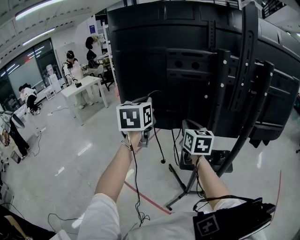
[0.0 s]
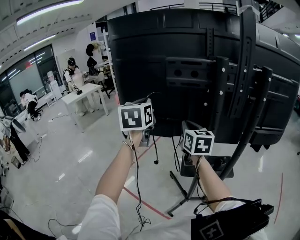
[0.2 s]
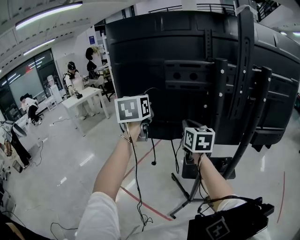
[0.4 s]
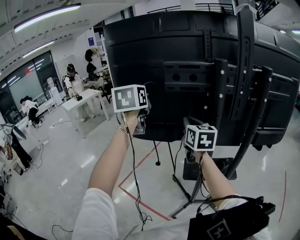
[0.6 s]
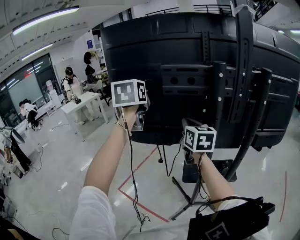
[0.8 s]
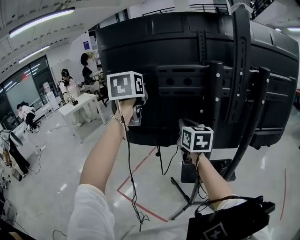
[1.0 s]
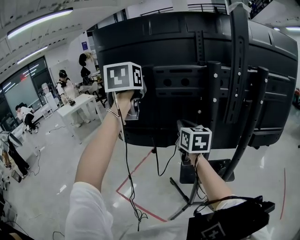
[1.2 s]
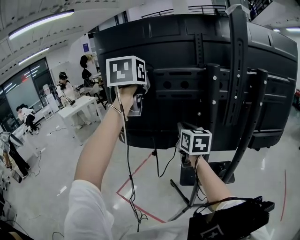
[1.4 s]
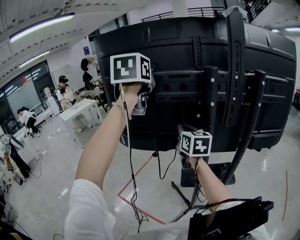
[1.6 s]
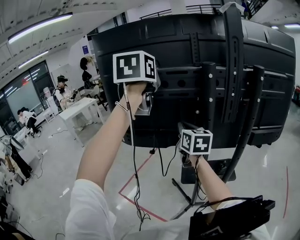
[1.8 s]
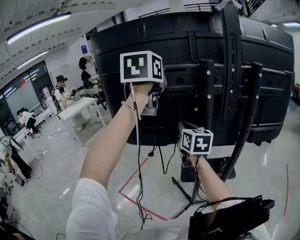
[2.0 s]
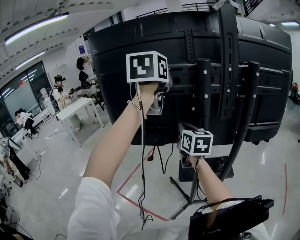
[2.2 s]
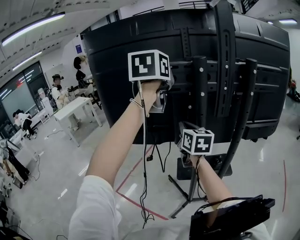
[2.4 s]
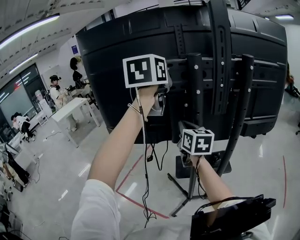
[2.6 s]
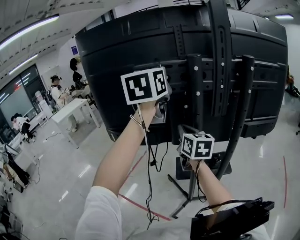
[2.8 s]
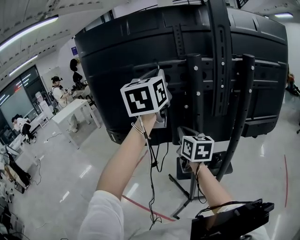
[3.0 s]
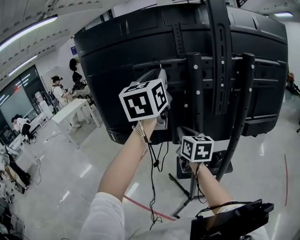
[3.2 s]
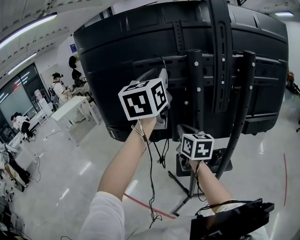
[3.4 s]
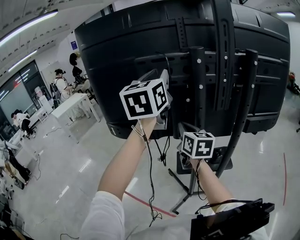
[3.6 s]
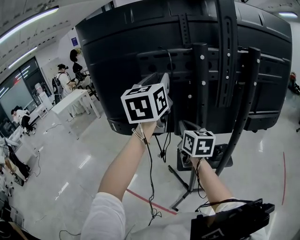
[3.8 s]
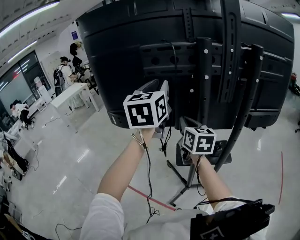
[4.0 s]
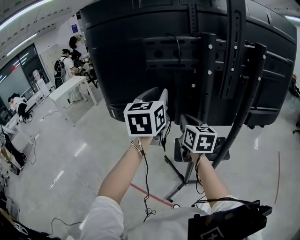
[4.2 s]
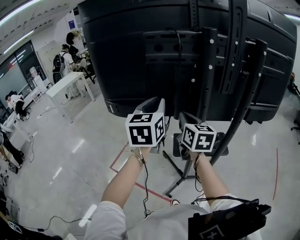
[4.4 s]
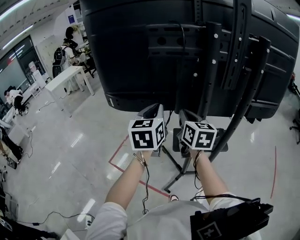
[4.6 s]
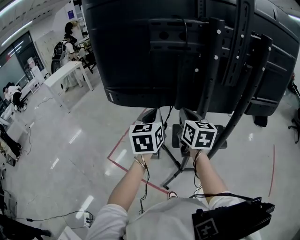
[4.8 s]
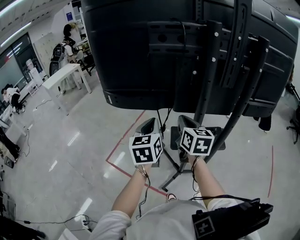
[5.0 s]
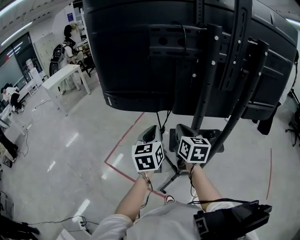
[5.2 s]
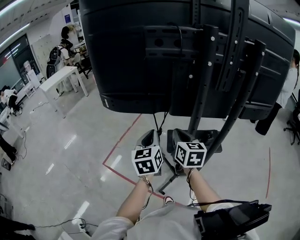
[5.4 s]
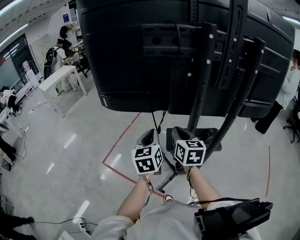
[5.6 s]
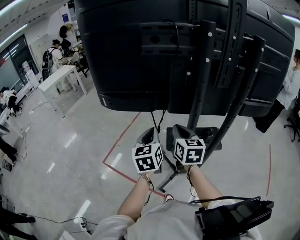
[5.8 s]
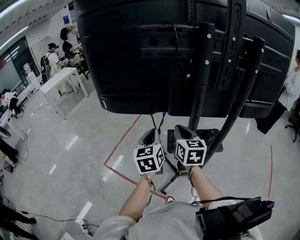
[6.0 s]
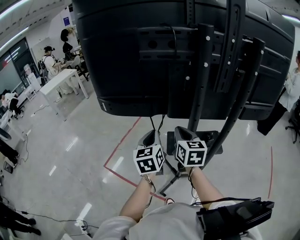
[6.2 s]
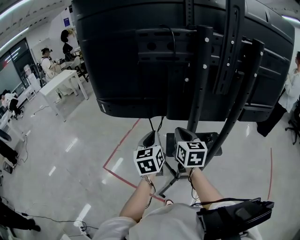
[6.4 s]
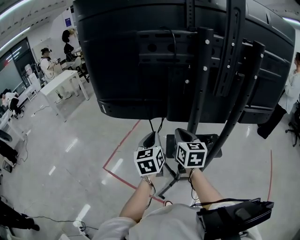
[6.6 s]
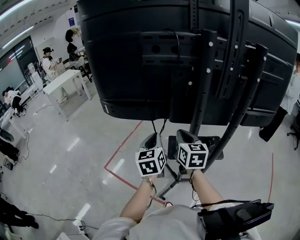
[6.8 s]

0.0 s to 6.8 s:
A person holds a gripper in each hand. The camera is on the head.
0.0 to 1.4 s: The right gripper heads upward, covering approximately 5 cm. Meanwhile the left gripper moves upward, roughly 20 cm.
1.4 to 2.8 s: The right gripper travels to the right by roughly 5 cm, while the left gripper goes some 15 cm to the right.
2.8 to 4.0 s: The left gripper moves downward, roughly 10 cm, and opens up.
4.0 to 5.4 s: The left gripper is displaced downward by roughly 25 cm, and closes up; the right gripper goes some 10 cm downward and backward.
5.4 to 6.8 s: The grippers move only a little.

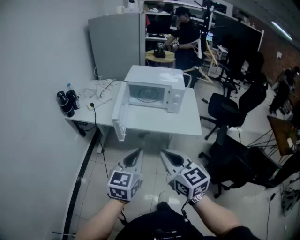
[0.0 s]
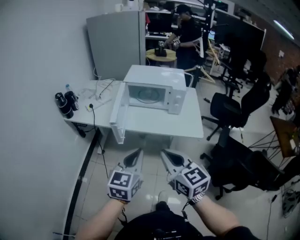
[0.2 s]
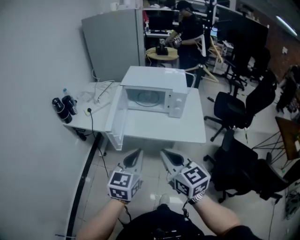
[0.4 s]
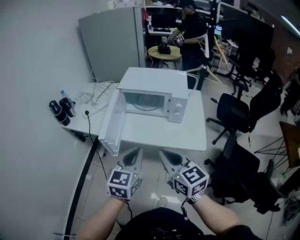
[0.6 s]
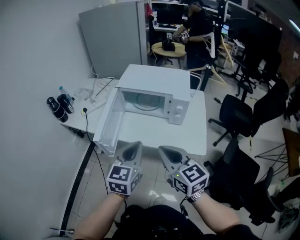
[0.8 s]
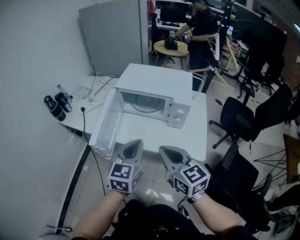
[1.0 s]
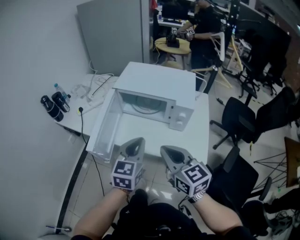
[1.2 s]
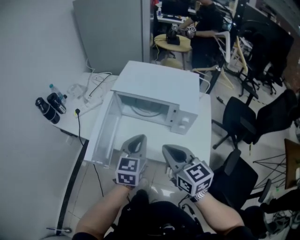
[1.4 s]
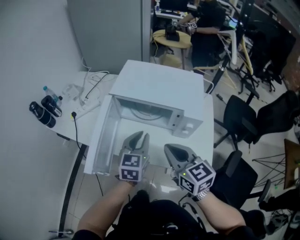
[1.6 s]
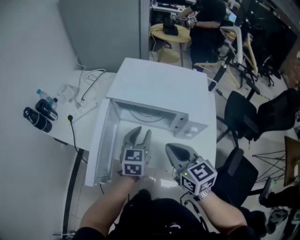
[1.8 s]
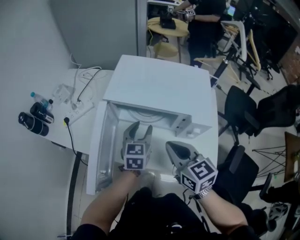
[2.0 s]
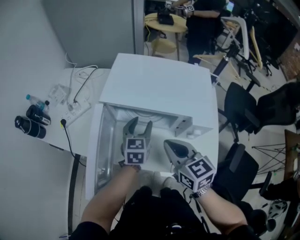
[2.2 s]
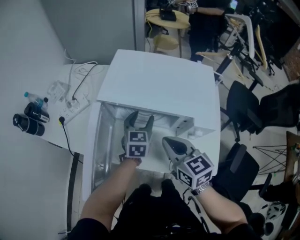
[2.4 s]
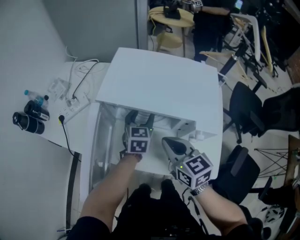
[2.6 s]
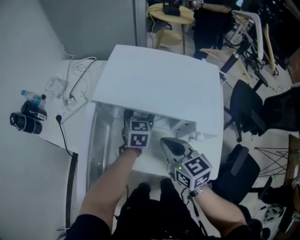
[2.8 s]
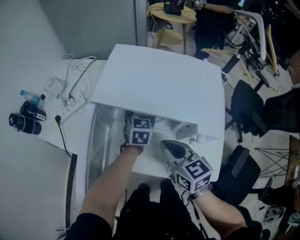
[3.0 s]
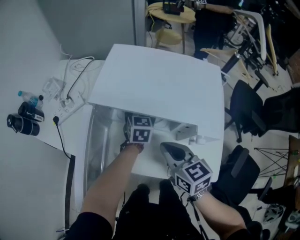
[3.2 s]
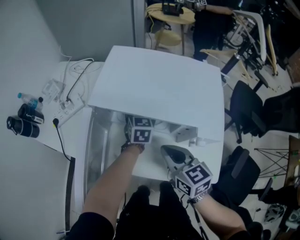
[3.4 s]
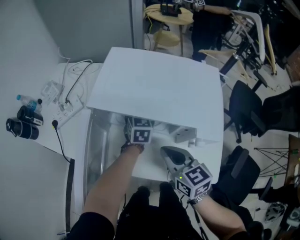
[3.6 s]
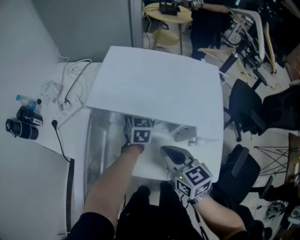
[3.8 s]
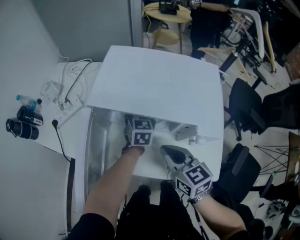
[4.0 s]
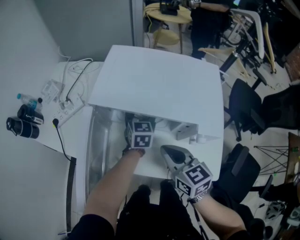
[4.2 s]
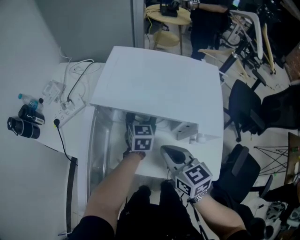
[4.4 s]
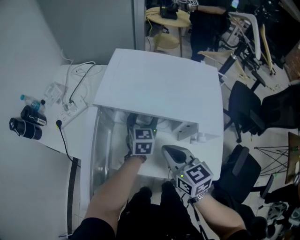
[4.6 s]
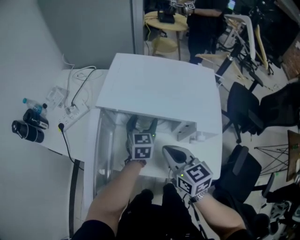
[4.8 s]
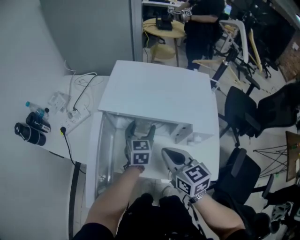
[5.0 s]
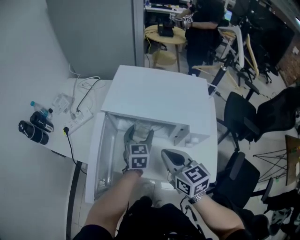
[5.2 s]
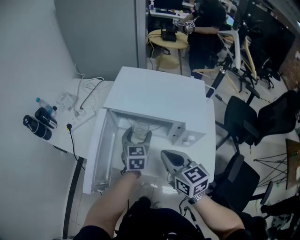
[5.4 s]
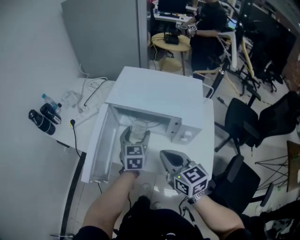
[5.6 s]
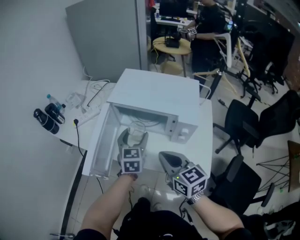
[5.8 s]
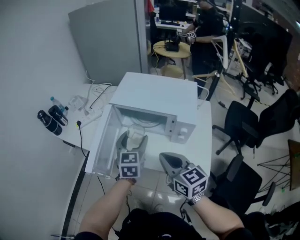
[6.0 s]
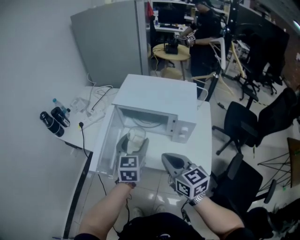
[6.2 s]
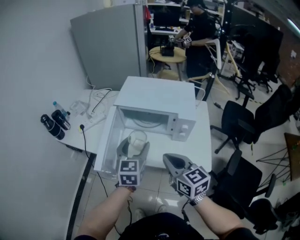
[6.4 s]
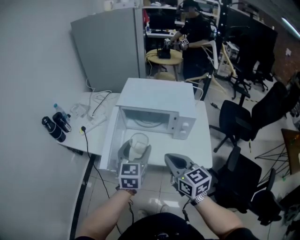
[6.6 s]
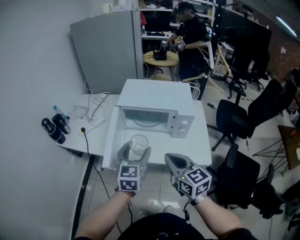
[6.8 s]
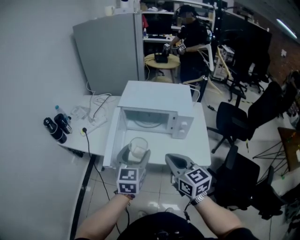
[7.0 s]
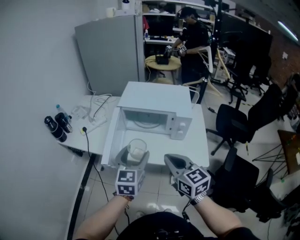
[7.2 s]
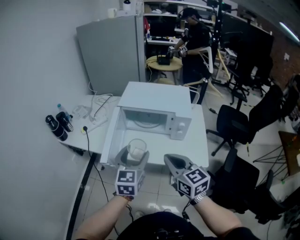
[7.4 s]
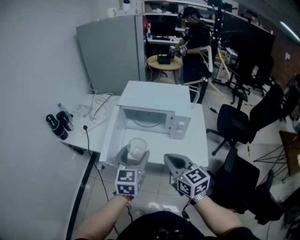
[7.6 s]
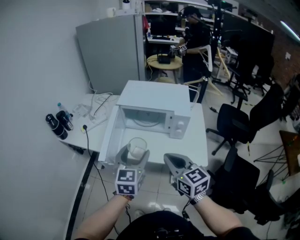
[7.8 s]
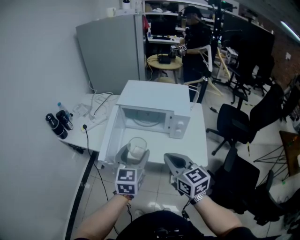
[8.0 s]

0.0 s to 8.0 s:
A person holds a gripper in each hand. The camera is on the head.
0.0 to 1.6 s: The grippers both shift forward by some 35 cm.
1.6 to 3.2 s: The right gripper shifts approximately 15 cm forward and downward, while the left gripper moves forward and downward, some 25 cm, and opens.
3.2 to 4.8 s: The left gripper is displaced backward by approximately 5 cm.
4.8 to 6.4 s: The grippers both shift backward and upward by about 20 cm.
6.4 to 8.0 s: The right gripper goes some 5 cm backward. Meanwhile the left gripper is displaced backward by some 10 cm.

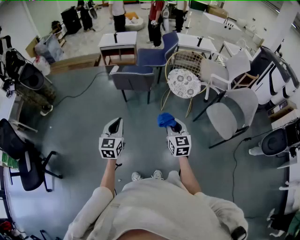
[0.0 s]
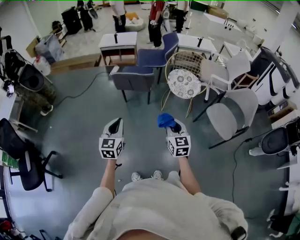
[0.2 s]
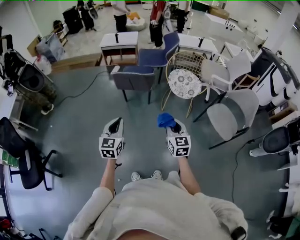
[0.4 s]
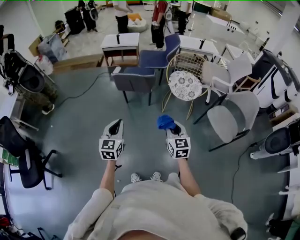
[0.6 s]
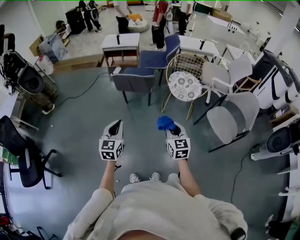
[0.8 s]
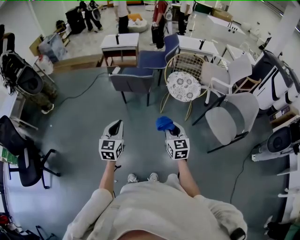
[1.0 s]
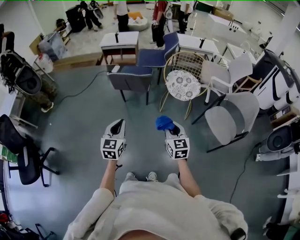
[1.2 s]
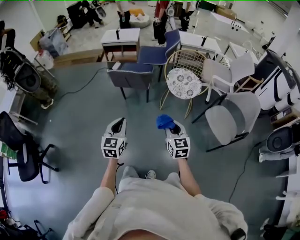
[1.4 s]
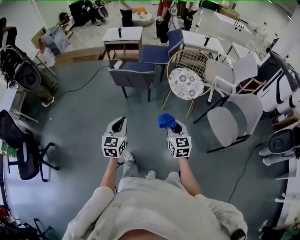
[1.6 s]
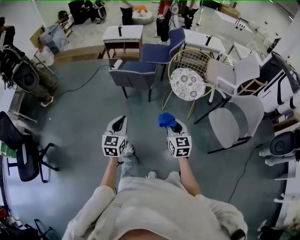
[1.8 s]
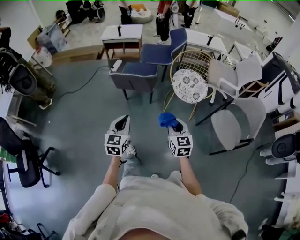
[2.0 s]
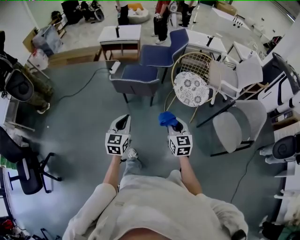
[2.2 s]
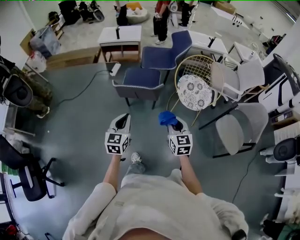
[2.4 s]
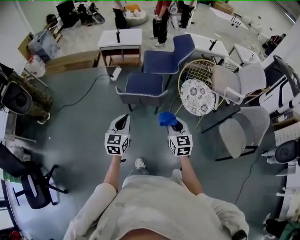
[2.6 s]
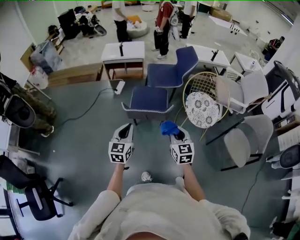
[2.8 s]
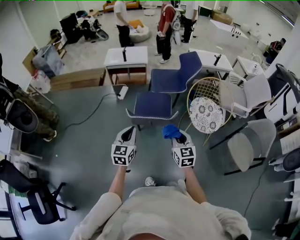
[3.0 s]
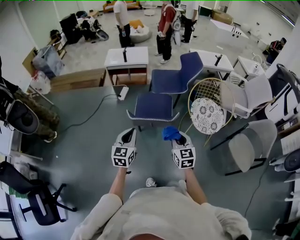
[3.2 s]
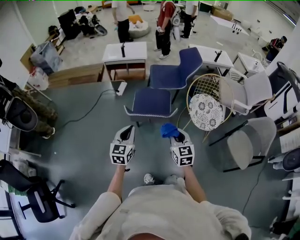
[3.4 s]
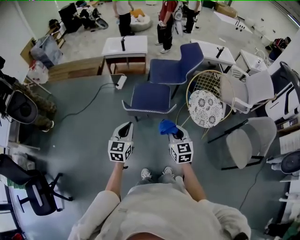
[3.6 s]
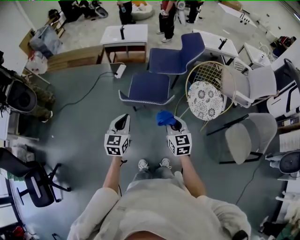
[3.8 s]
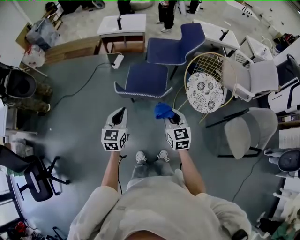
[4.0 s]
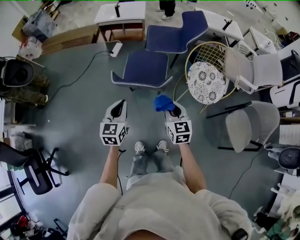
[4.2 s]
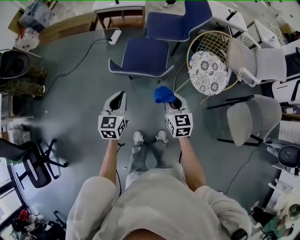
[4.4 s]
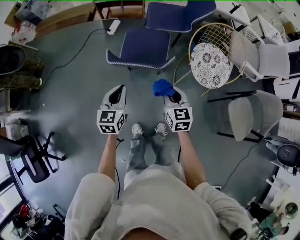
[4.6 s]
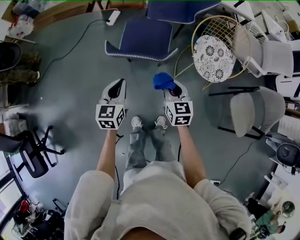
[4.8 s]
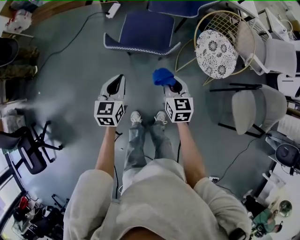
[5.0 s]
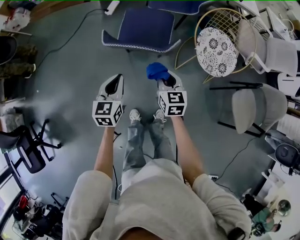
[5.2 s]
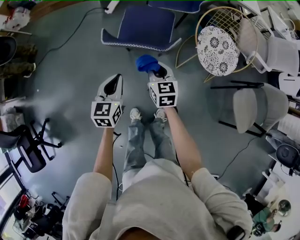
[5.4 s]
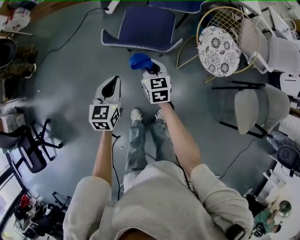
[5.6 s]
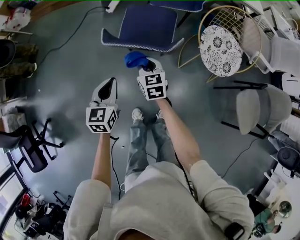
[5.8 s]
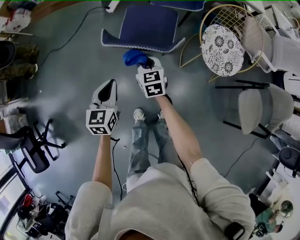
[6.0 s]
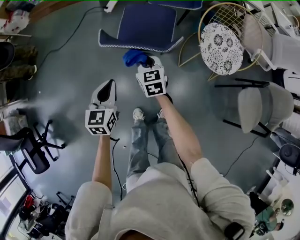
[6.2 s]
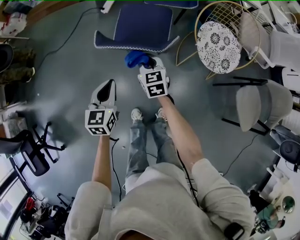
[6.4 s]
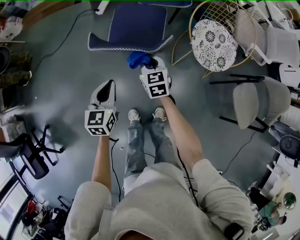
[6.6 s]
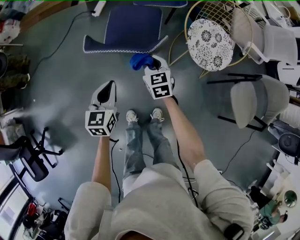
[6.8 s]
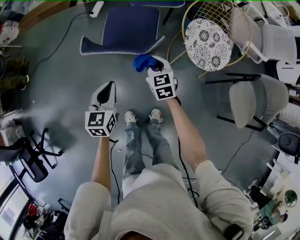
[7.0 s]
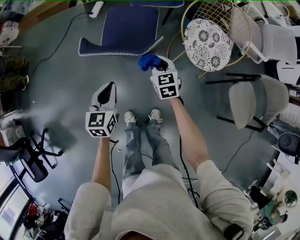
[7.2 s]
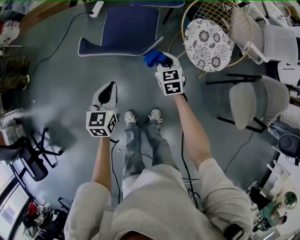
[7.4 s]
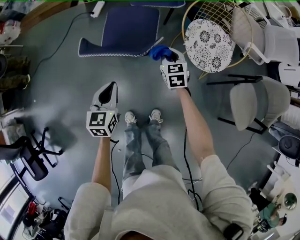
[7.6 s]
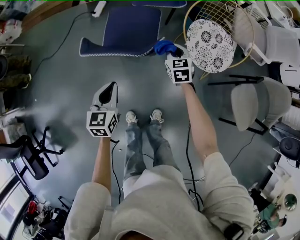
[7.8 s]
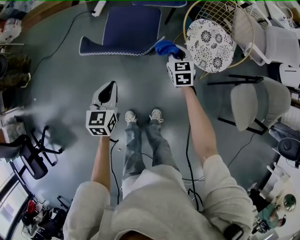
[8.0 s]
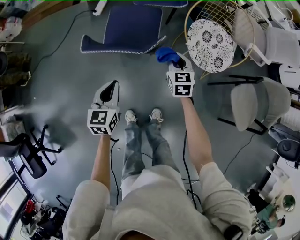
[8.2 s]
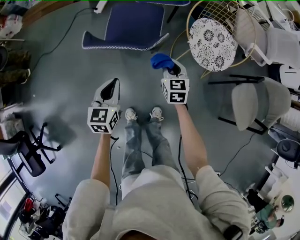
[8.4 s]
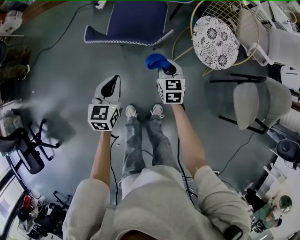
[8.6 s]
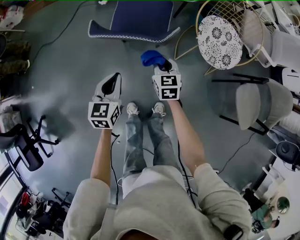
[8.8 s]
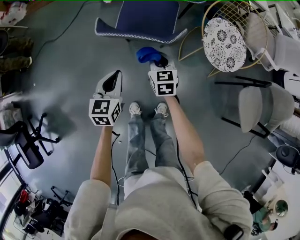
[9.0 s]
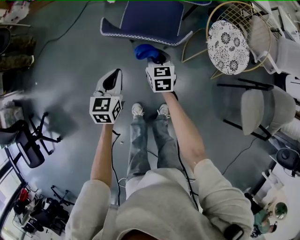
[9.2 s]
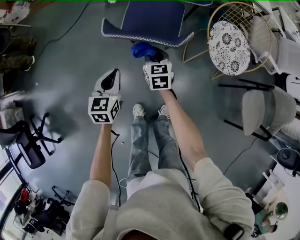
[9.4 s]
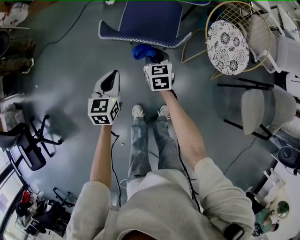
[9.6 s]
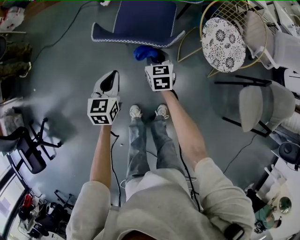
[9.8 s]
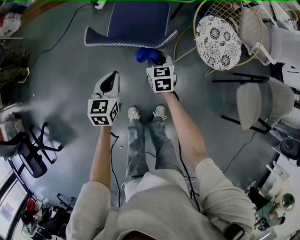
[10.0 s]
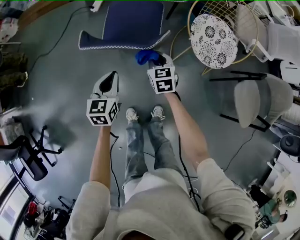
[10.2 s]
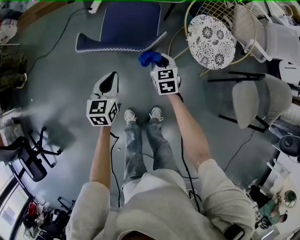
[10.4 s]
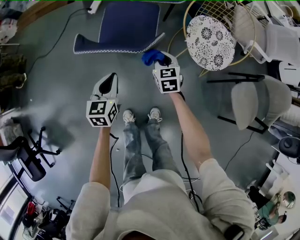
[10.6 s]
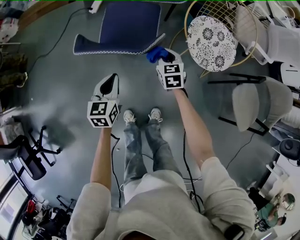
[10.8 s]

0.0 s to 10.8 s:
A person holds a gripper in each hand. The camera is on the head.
0.0 to 1.6 s: Both grippers move to the right, approximately 5 cm.
1.6 to 3.0 s: Both grippers travel together forward and to the left, roughly 40 cm.
3.0 to 4.6 s: The left gripper goes roughly 10 cm downward and to the right. The right gripper goes roughly 10 cm downward.
4.6 to 6.2 s: The right gripper shifts roughly 20 cm to the left, downward and forward, while the left gripper heads downward, covering approximately 5 cm.
6.2 to 7.8 s: The right gripper is displaced to the right by some 25 cm, while the left gripper heads to the right, covering approximately 10 cm.
7.8 to 9.2 s: The right gripper is displaced to the left by some 20 cm. The left gripper shifts roughly 10 cm to the left.
9.2 to 10.8 s: The left gripper moves to the right, about 10 cm; the right gripper moves to the right, approximately 15 cm.
